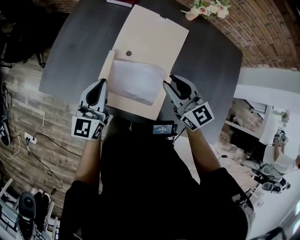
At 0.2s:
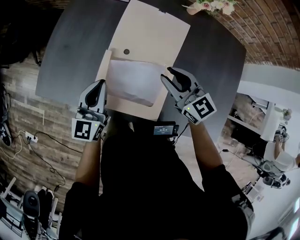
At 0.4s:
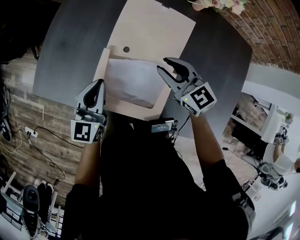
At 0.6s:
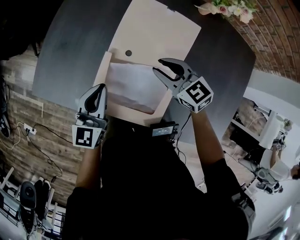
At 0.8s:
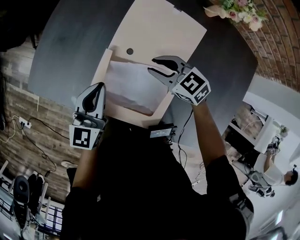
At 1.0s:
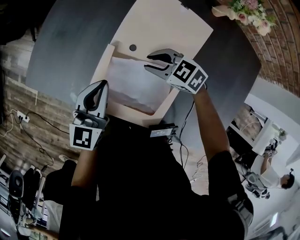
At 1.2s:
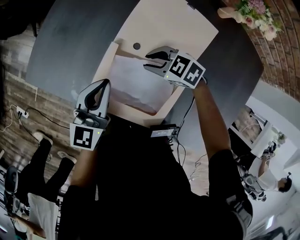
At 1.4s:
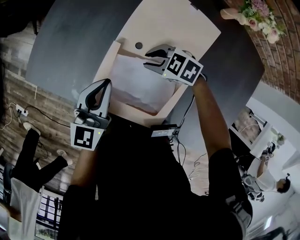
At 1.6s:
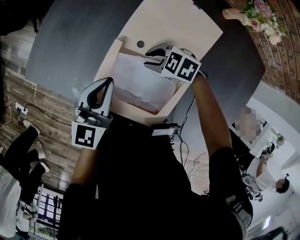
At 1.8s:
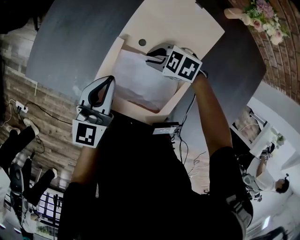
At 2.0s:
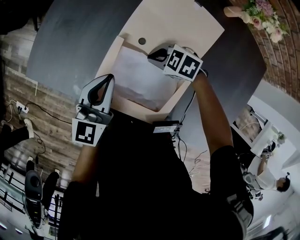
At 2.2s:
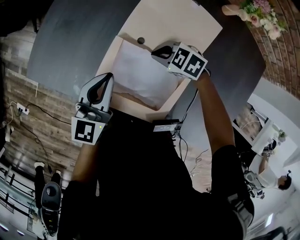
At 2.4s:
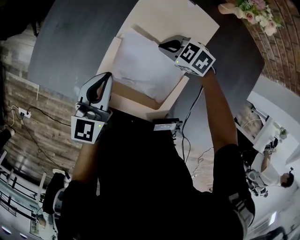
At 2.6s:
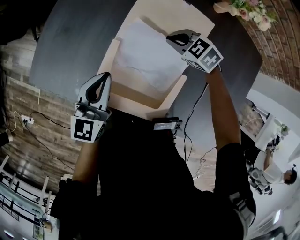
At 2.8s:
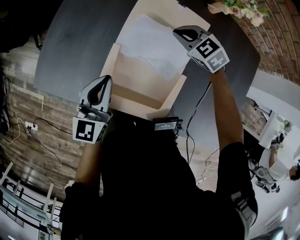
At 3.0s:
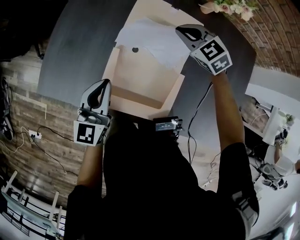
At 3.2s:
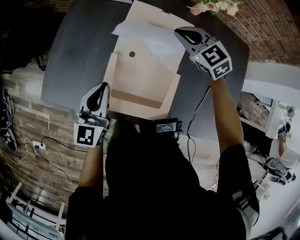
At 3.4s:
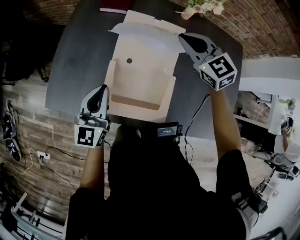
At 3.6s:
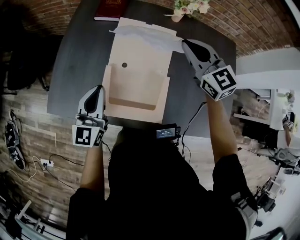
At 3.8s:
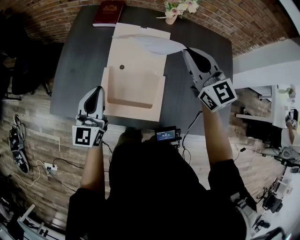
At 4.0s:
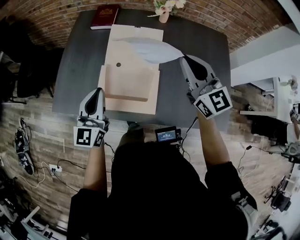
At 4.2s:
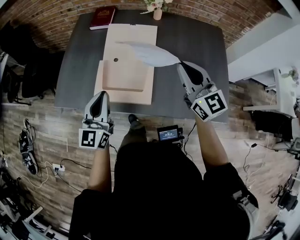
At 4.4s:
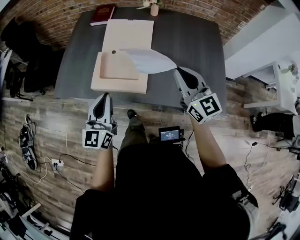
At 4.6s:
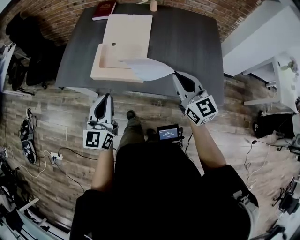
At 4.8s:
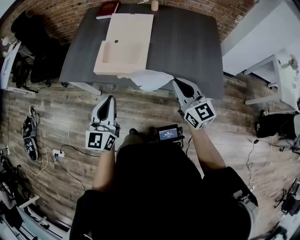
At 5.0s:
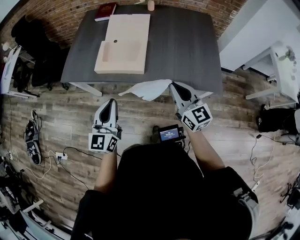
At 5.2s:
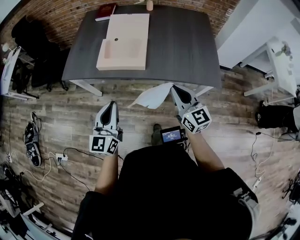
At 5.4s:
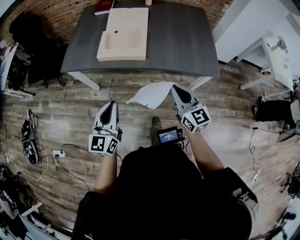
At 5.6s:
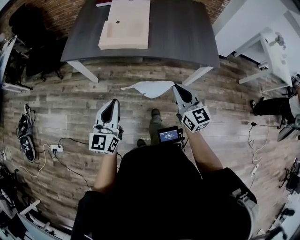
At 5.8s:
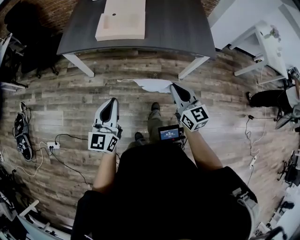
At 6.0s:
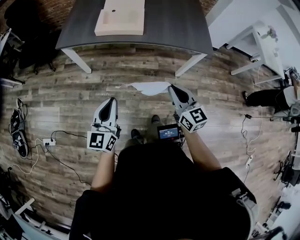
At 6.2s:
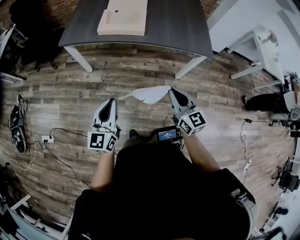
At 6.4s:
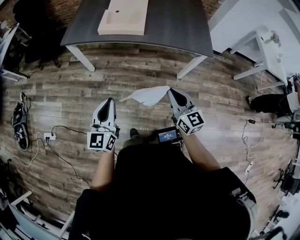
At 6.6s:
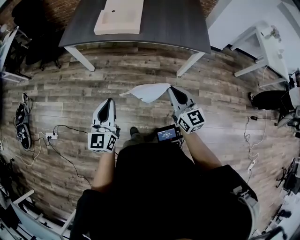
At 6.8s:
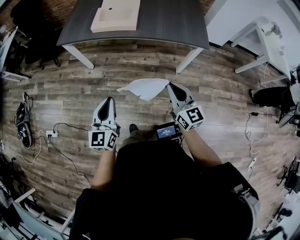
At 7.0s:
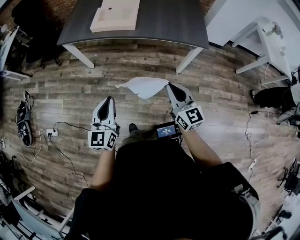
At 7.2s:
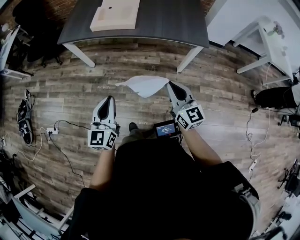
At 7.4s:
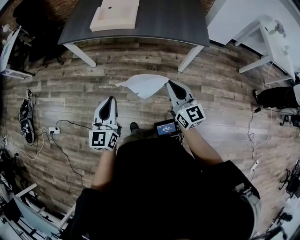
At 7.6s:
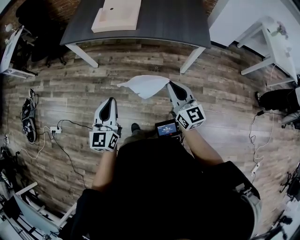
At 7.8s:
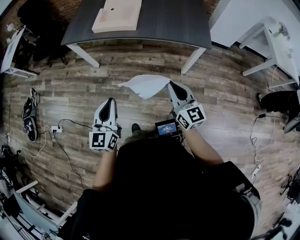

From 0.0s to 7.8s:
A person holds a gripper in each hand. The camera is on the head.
From 0.0s to 1.6s: The right gripper heads downward, covering approximately 20 cm, and angles its fingers downward, by about 40 degrees; the left gripper travels downward by approximately 10 cm.
From 1.6s to 3.2s: The right gripper moves upward, some 20 cm, turns by approximately 50 degrees, and closes its fingers; the left gripper is displaced upward by some 5 cm.
From 3.2s to 4.6s: Both grippers move backward, approximately 40 cm. The right gripper tilts its fingers roughly 30 degrees upward.
From 4.6s to 6.2s: Both grippers travel together backward, about 40 cm.
From 6.2s to 7.8s: The left gripper goes about 10 cm to the right and backward. The right gripper goes roughly 10 cm to the right.

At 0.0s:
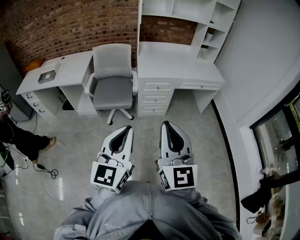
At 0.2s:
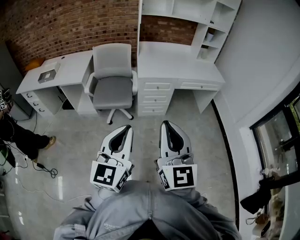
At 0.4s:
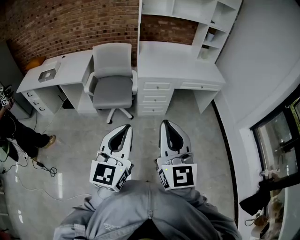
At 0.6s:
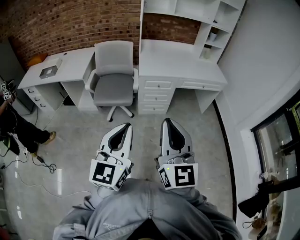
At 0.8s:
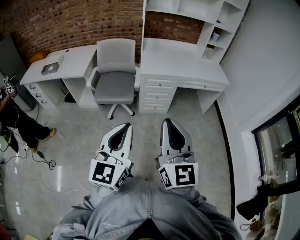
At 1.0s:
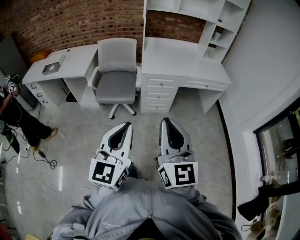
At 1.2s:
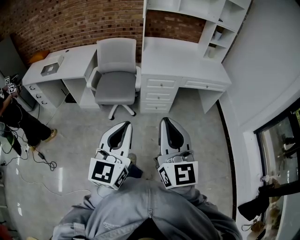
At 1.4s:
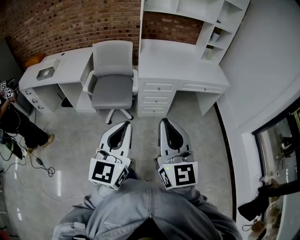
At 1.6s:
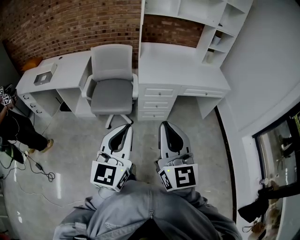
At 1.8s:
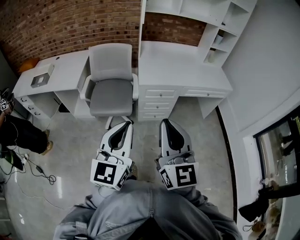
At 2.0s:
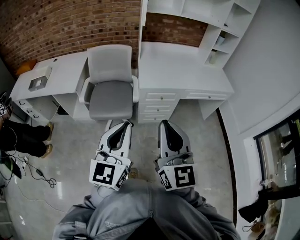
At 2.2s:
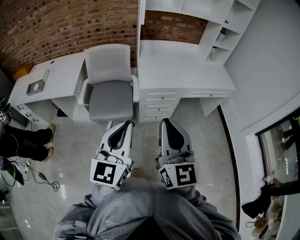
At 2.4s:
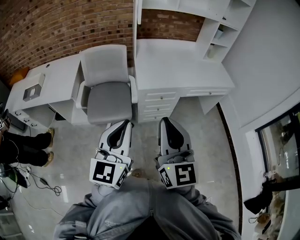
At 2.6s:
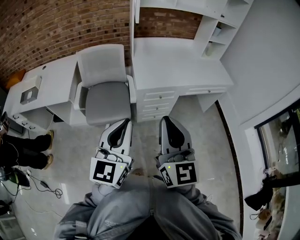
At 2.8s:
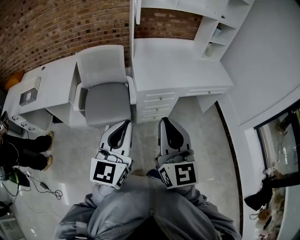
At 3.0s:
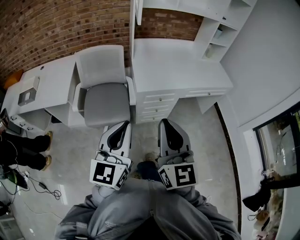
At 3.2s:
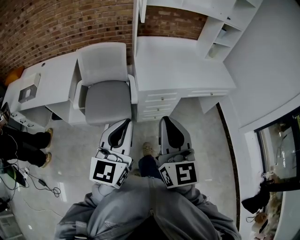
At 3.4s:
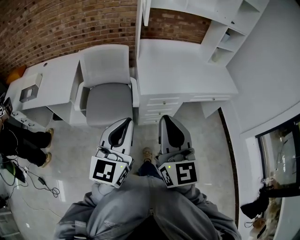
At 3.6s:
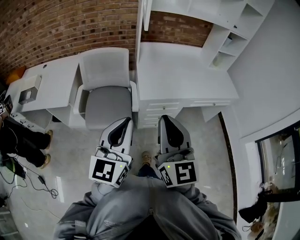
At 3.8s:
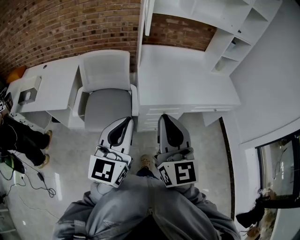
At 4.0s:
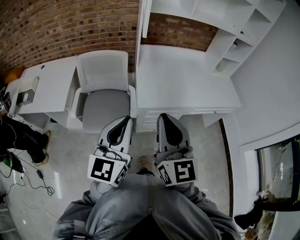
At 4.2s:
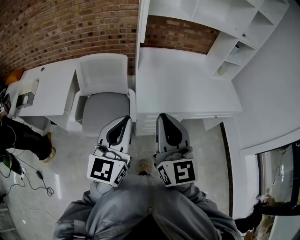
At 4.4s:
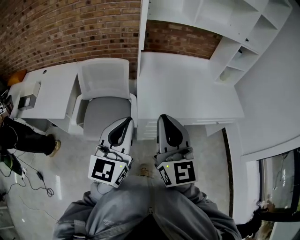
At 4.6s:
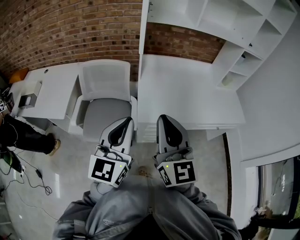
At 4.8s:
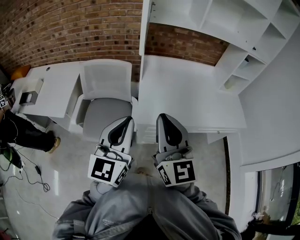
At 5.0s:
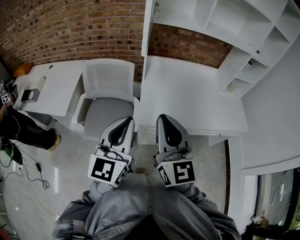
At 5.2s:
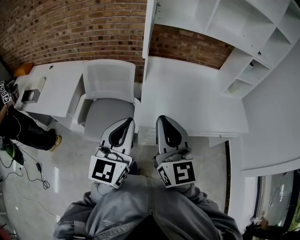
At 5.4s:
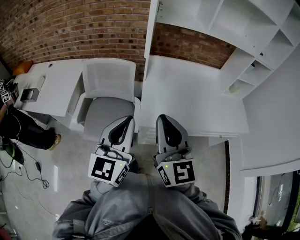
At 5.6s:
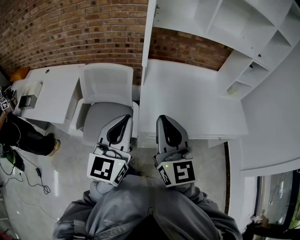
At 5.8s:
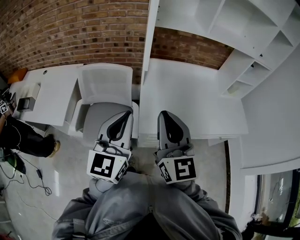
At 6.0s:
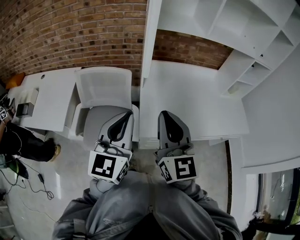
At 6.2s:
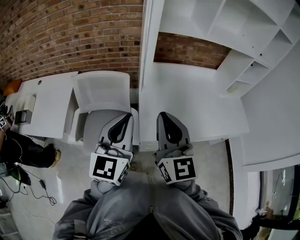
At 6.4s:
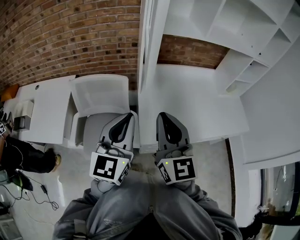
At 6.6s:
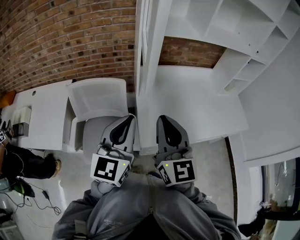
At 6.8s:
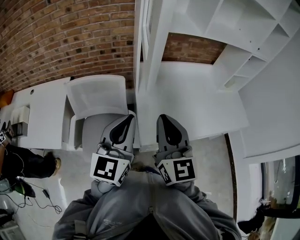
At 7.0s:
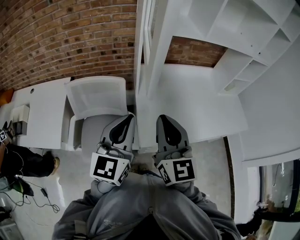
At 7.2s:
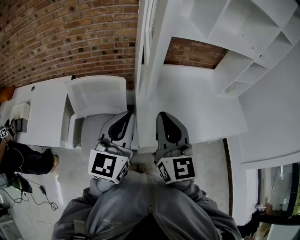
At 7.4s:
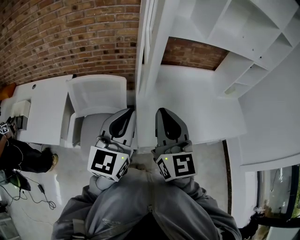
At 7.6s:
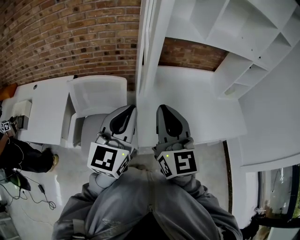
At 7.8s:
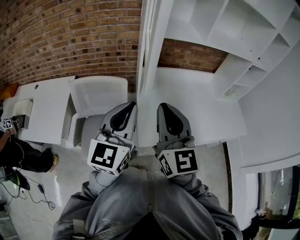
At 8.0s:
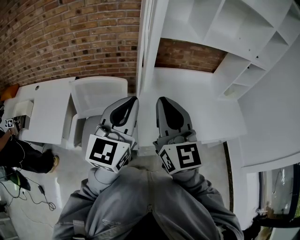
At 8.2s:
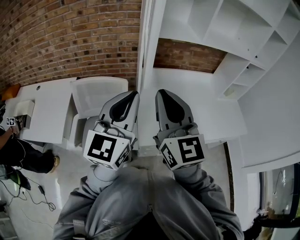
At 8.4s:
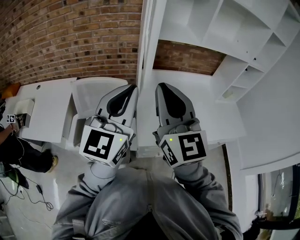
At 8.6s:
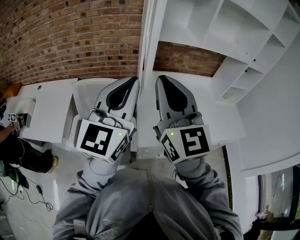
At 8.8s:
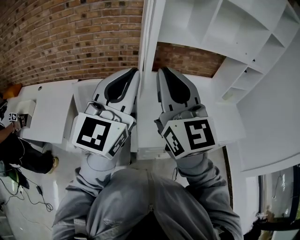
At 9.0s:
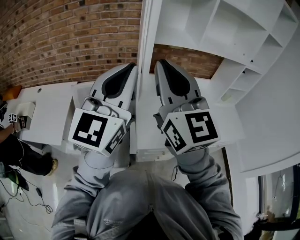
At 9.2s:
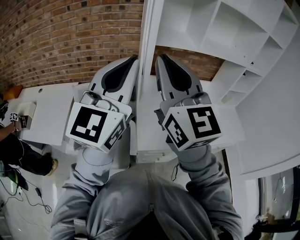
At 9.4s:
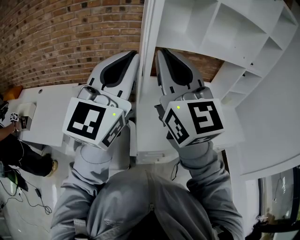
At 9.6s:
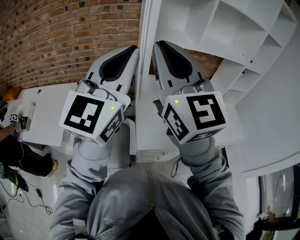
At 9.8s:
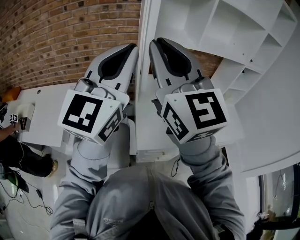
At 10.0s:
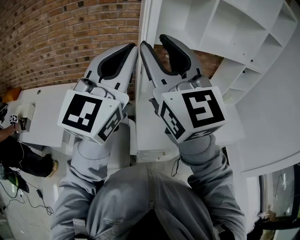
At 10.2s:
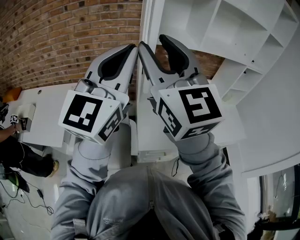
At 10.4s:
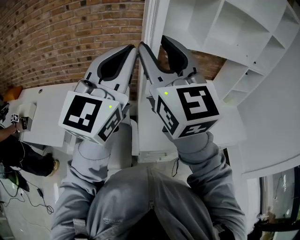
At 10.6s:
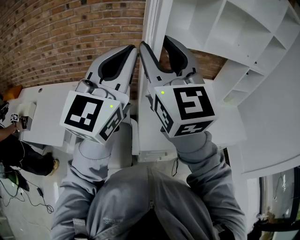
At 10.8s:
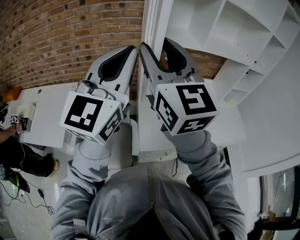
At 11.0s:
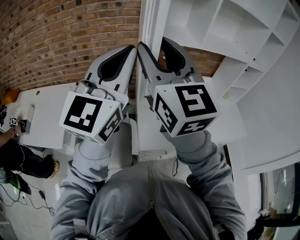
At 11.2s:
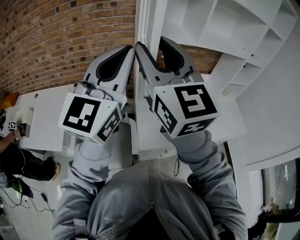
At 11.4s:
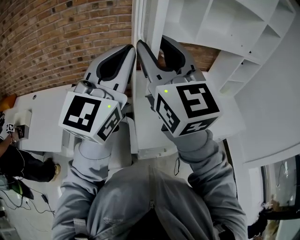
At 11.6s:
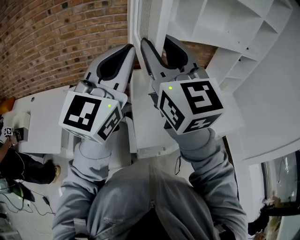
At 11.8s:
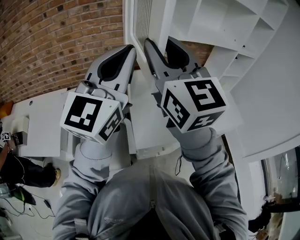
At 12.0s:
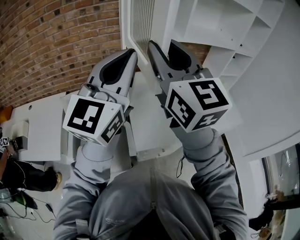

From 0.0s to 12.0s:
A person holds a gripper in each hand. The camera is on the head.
From 0.0s to 1.6s: Both grippers travel together forward, roughly 10 cm.
From 1.6s to 3.0s: Both grippers travel together forward, approximately 20 cm.
From 3.0s to 4.4s: Both grippers move forward, roughly 20 cm.
From 4.4s to 6.0s: Both grippers travel together forward, approximately 15 cm.
From 6.0s to 7.6s: Both grippers move forward, about 5 cm.
From 7.6s to 9.0s: The two grippers go some 15 cm upward.
From 9.0s to 10.4s: The right gripper moves about 5 cm, and opens its fingers.
From 10.4s to 12.0s: The left gripper ends up some 5 cm from where it was. The right gripper goes roughly 5 cm to the right.

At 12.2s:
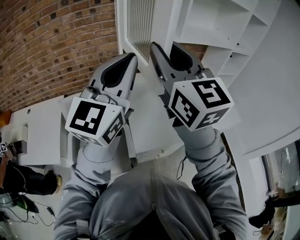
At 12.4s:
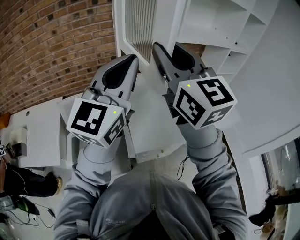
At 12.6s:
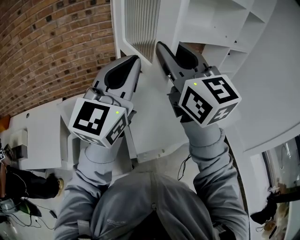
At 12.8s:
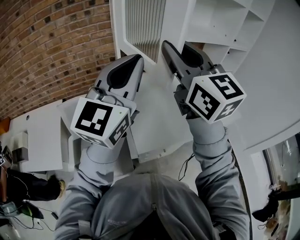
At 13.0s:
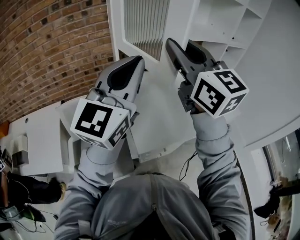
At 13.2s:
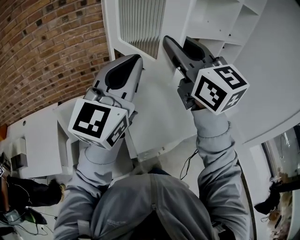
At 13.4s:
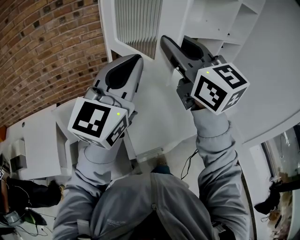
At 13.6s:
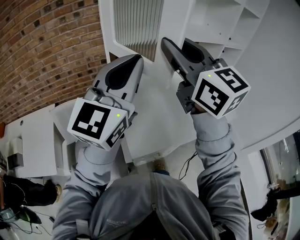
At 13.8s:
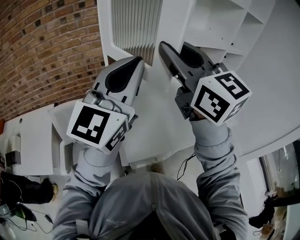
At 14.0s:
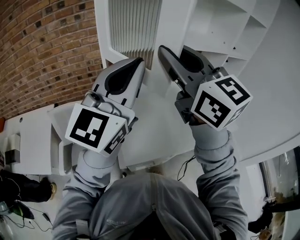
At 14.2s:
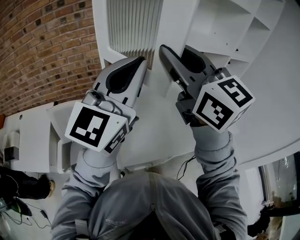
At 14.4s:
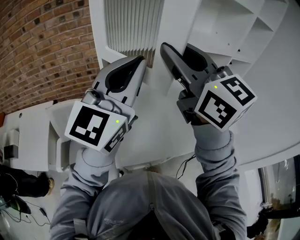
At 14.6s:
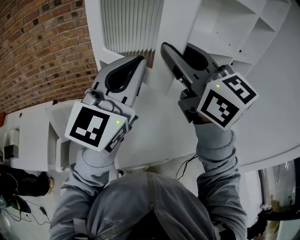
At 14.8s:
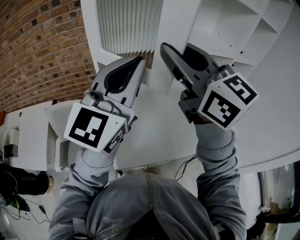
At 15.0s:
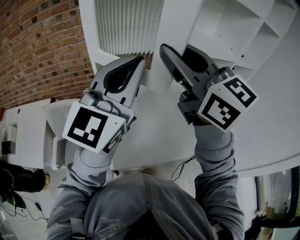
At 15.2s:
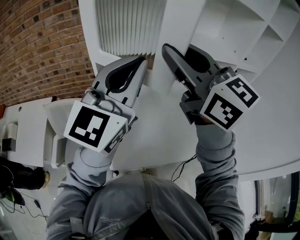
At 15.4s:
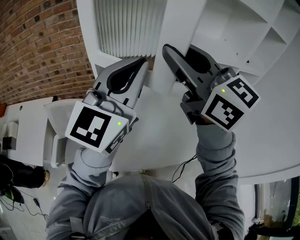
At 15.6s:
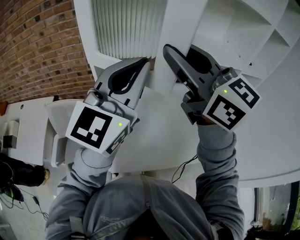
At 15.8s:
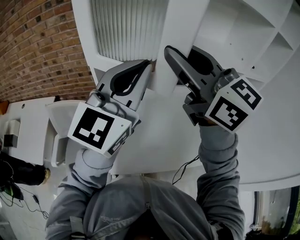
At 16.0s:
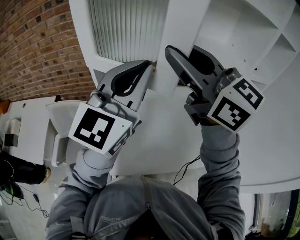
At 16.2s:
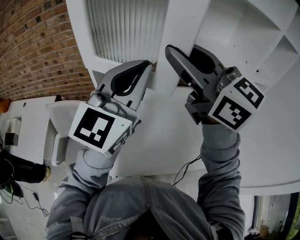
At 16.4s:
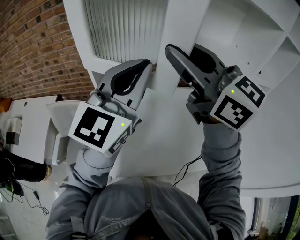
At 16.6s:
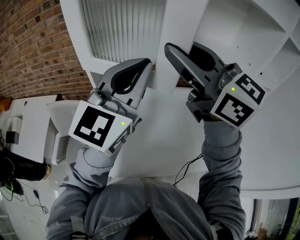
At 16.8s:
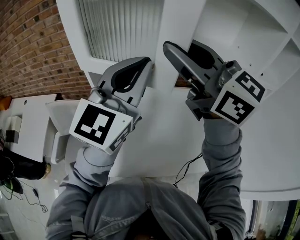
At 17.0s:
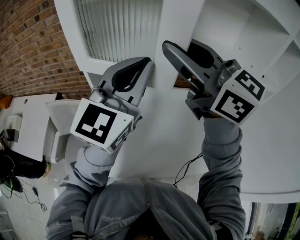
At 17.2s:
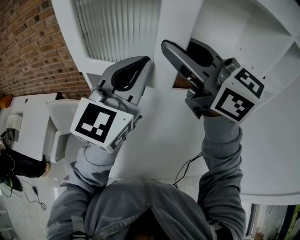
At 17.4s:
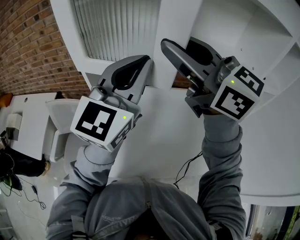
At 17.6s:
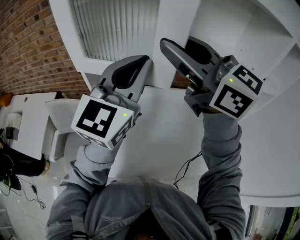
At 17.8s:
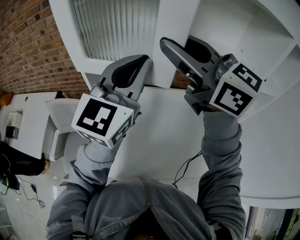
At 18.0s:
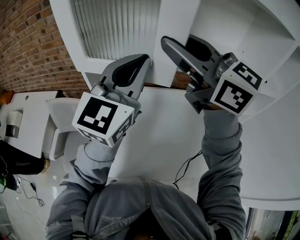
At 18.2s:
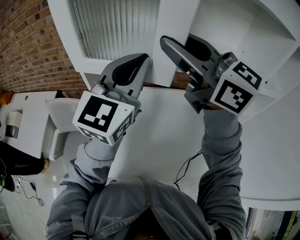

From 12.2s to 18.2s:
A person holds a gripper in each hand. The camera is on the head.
From 12.2s to 13.8s: Both grippers move to the right, about 5 cm.
From 13.8s to 15.2s: The grippers both shift forward and to the right by approximately 10 cm.
From 15.2s to 16.6s: The grippers both shift forward by roughly 5 cm.
From 16.6s to 18.2s: The right gripper shifts by some 5 cm; the left gripper heads forward, covering some 5 cm.
